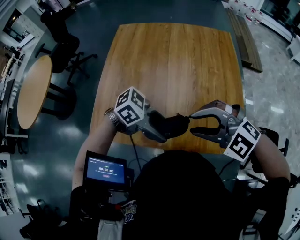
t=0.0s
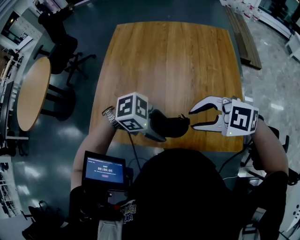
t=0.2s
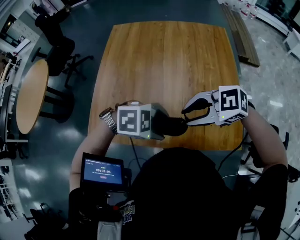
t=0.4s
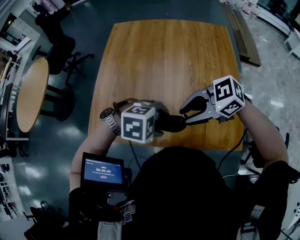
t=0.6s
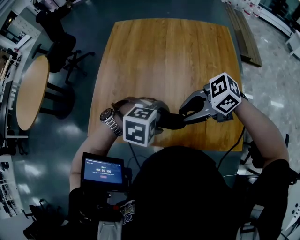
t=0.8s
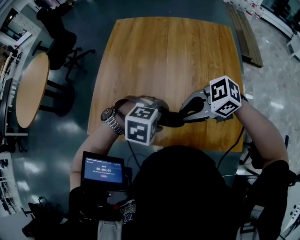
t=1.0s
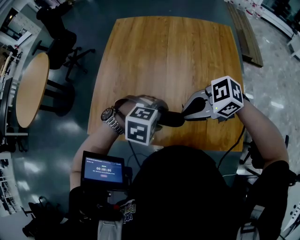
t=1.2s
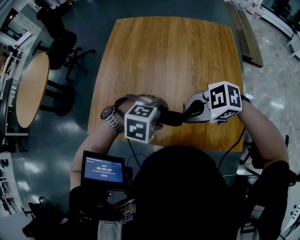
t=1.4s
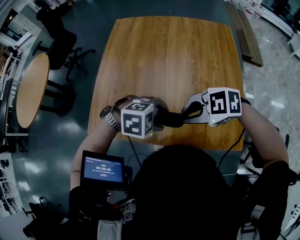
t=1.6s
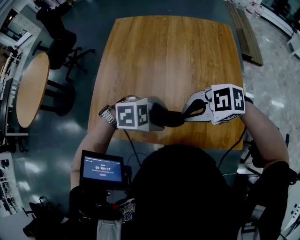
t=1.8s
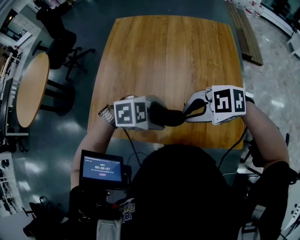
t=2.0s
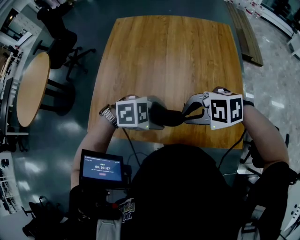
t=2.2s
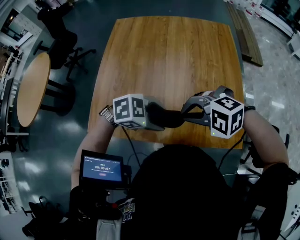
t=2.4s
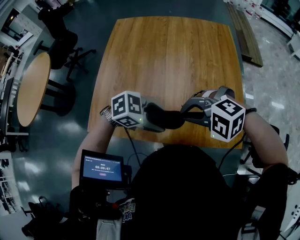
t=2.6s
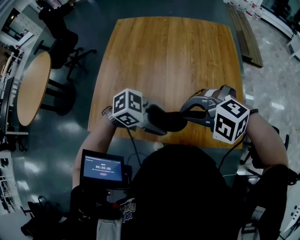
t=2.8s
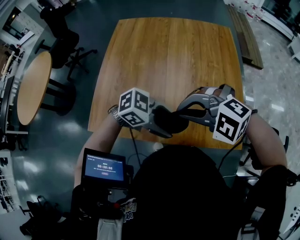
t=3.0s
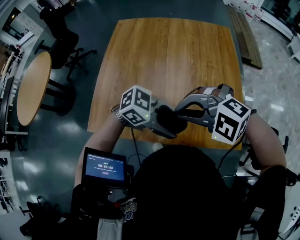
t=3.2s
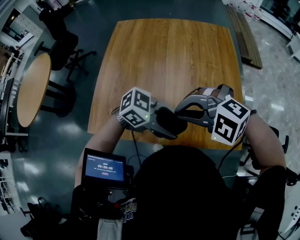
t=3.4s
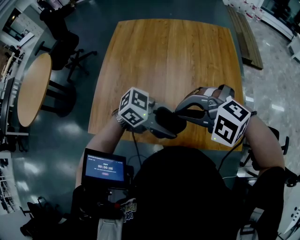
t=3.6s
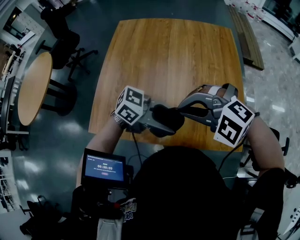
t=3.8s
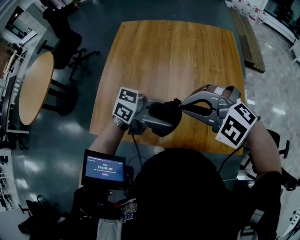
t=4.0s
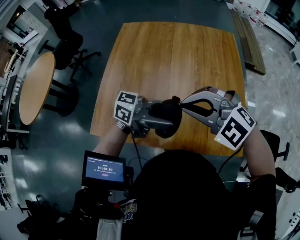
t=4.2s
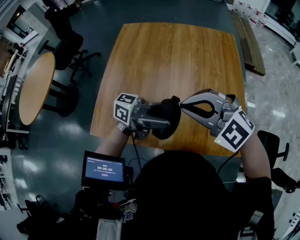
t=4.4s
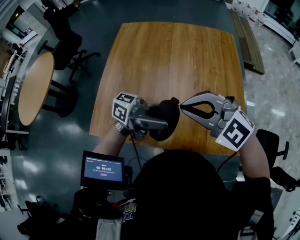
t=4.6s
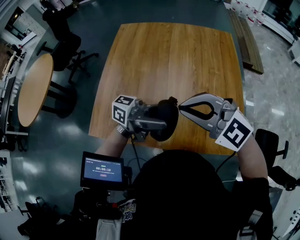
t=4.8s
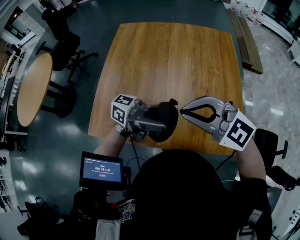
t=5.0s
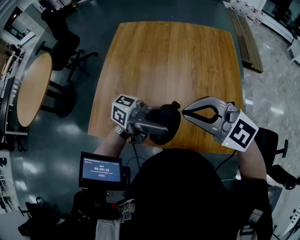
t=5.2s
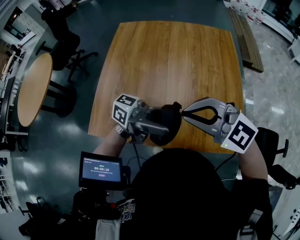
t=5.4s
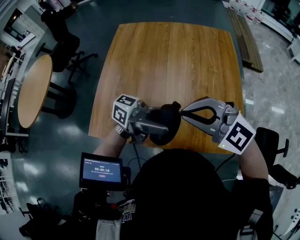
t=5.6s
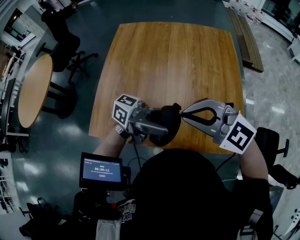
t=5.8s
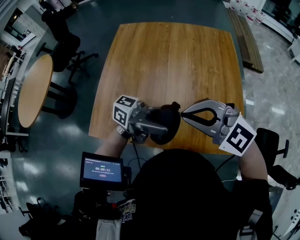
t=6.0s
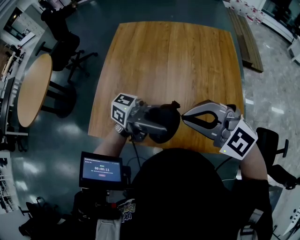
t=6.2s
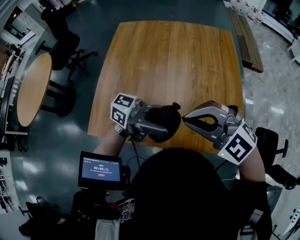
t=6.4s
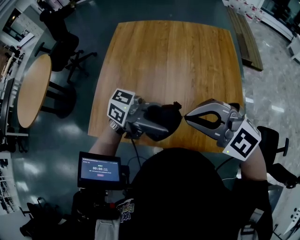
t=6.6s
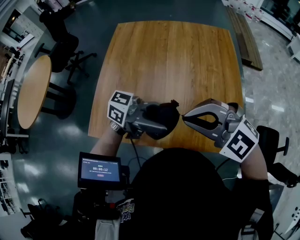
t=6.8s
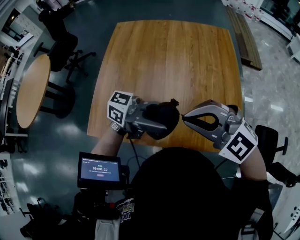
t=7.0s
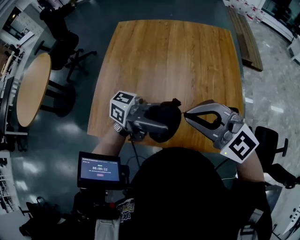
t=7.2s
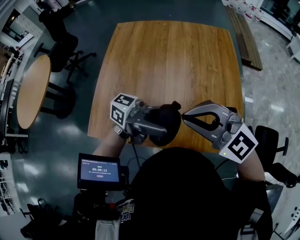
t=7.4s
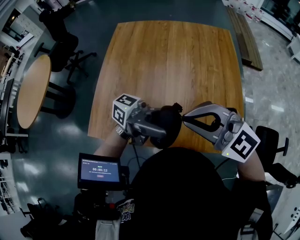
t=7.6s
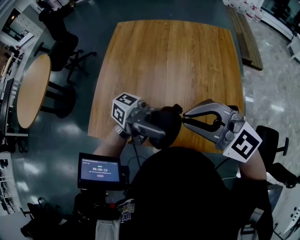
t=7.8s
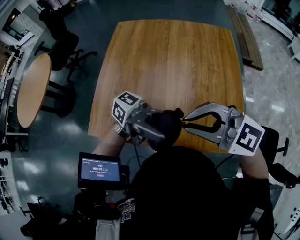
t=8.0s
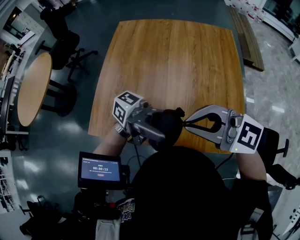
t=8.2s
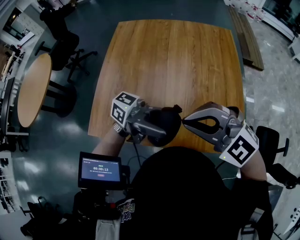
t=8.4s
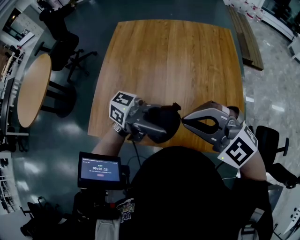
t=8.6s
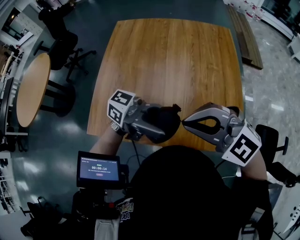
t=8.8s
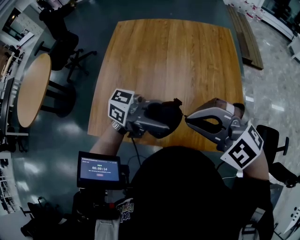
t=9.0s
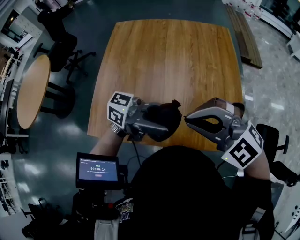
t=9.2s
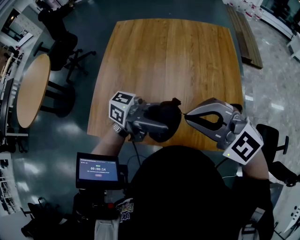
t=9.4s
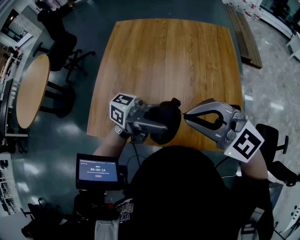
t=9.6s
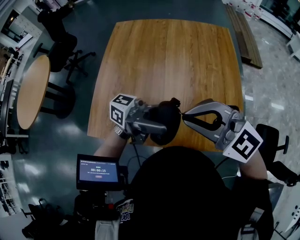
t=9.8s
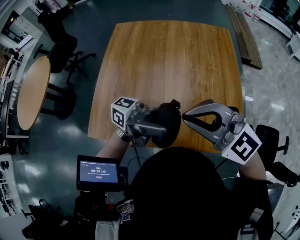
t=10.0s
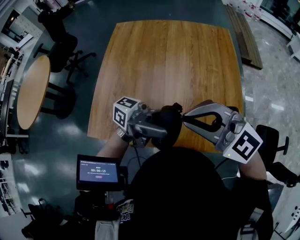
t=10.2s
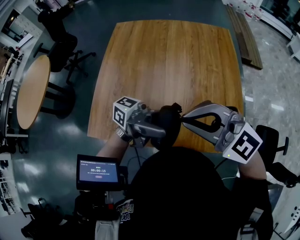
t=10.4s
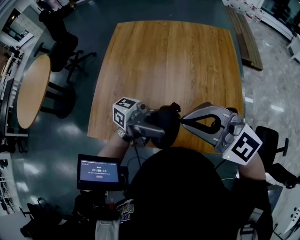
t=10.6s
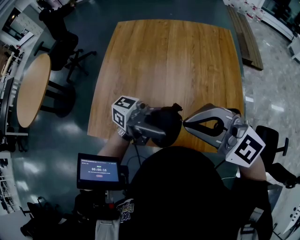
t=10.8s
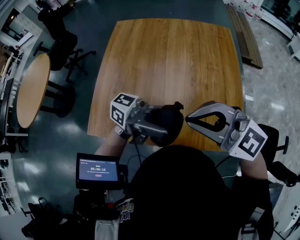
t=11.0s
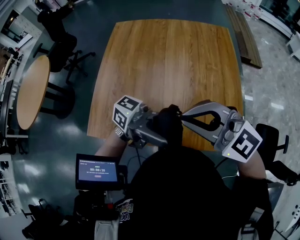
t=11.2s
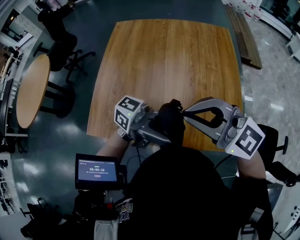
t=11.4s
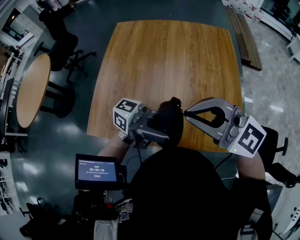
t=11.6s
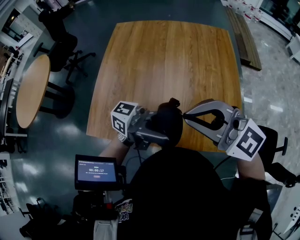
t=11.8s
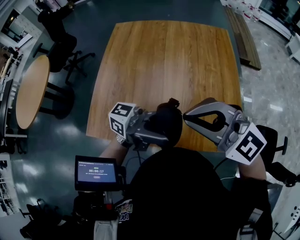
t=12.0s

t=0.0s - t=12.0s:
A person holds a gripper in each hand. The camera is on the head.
t=0.0s - t=1.6s: Both grippers travel together downward, about 5 cm. The left gripper tips its fingers downward by about 40 degrees; the right gripper swivels approximately 40 degrees, and closes.
t=1.6s - t=3.0s: The left gripper moves approximately 5 cm, and tilts its fingers roughly 40 degrees upward. The right gripper goes roughly 5 cm upward, and rotates approximately 40 degrees.
t=3.0s - t=4.4s: The right gripper shifts by roughly 5 cm, and changes its angle by roughly 20 degrees; the left gripper goes roughly 10 cm upward, and tilts its fingers some 50 degrees upward.
t=4.4s - t=7.6s: The grippers stay close to where they were, moving slightly.
t=7.6s - t=9.0s: The right gripper swivels approximately 20 degrees.
t=9.0s - t=10.4s: The right gripper rotates some 20 degrees. Meanwhile the left gripper rotates approximately 20 degrees.
t=10.4s - t=12.0s: The grippers move only a little.

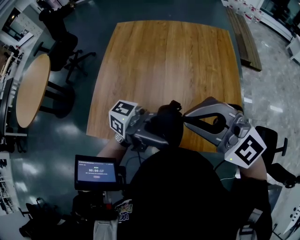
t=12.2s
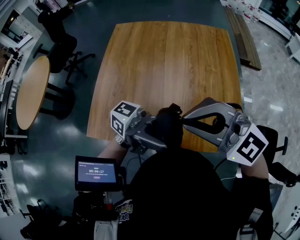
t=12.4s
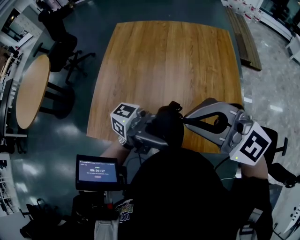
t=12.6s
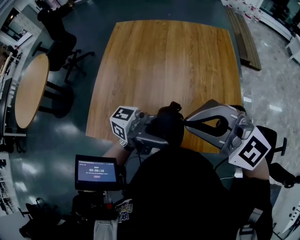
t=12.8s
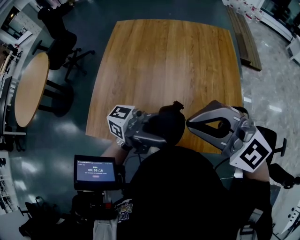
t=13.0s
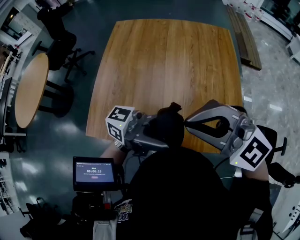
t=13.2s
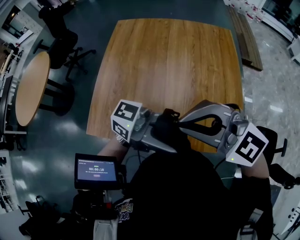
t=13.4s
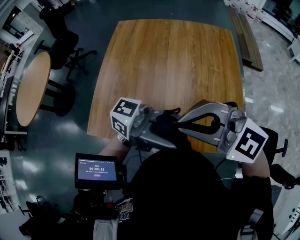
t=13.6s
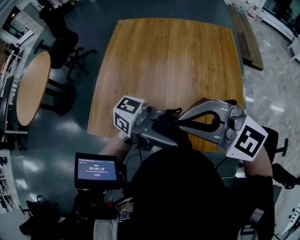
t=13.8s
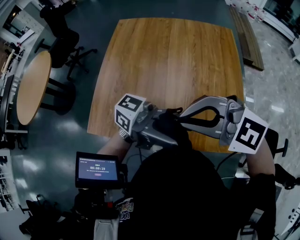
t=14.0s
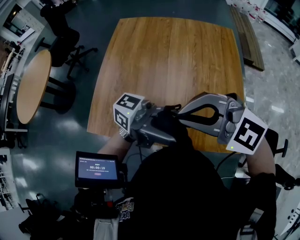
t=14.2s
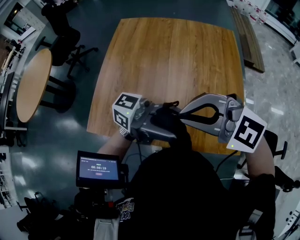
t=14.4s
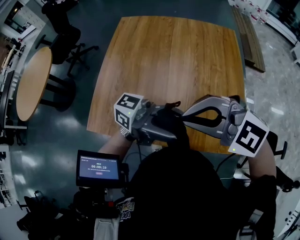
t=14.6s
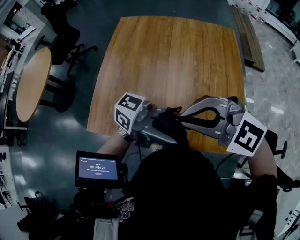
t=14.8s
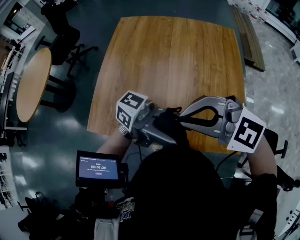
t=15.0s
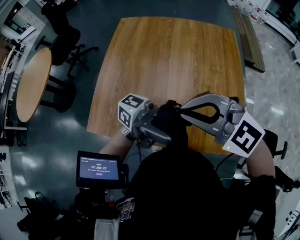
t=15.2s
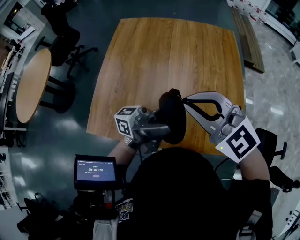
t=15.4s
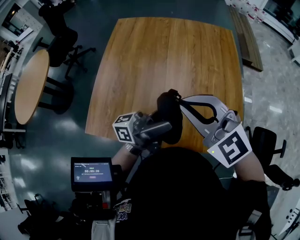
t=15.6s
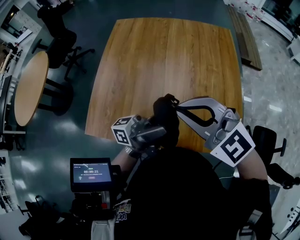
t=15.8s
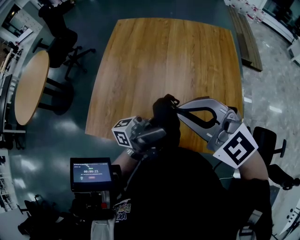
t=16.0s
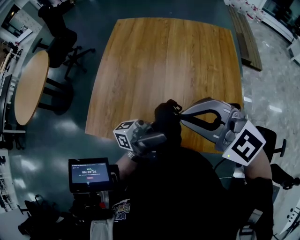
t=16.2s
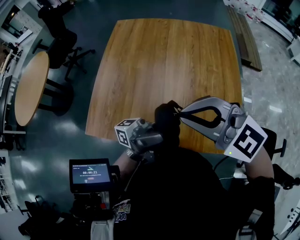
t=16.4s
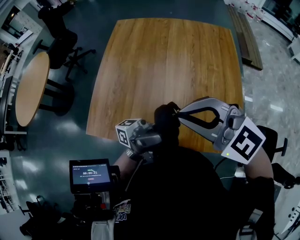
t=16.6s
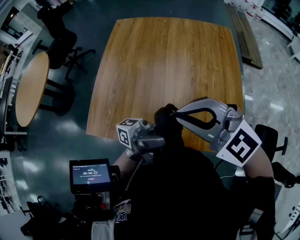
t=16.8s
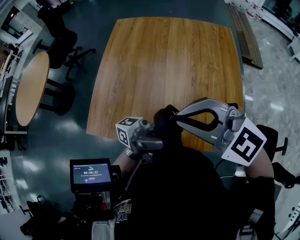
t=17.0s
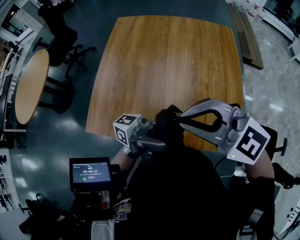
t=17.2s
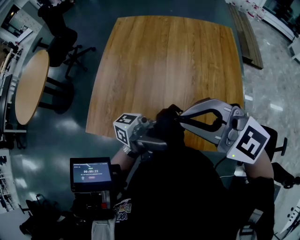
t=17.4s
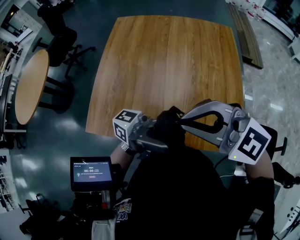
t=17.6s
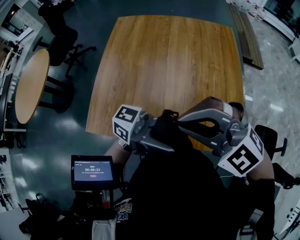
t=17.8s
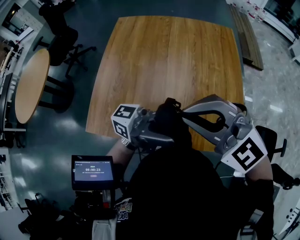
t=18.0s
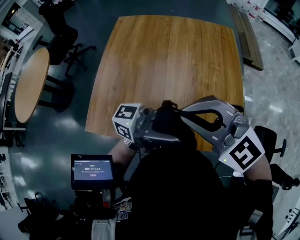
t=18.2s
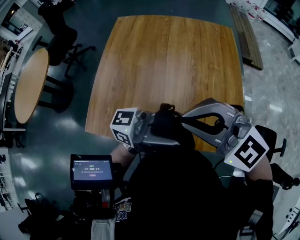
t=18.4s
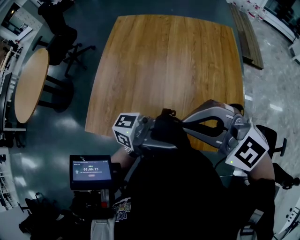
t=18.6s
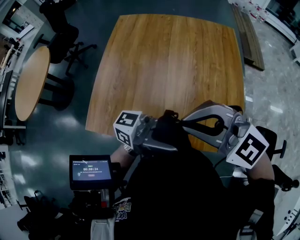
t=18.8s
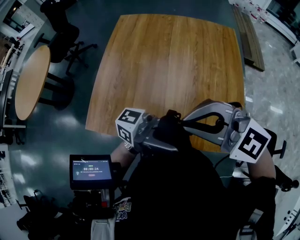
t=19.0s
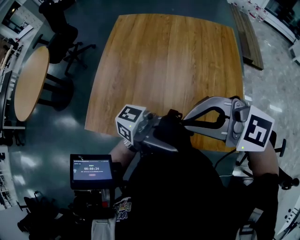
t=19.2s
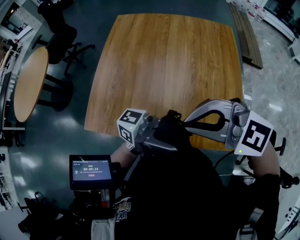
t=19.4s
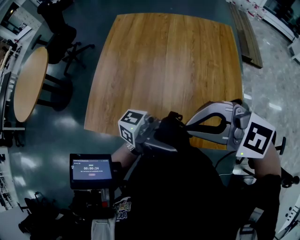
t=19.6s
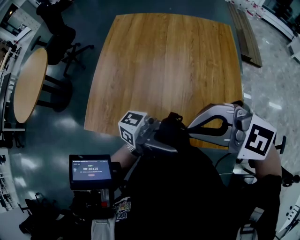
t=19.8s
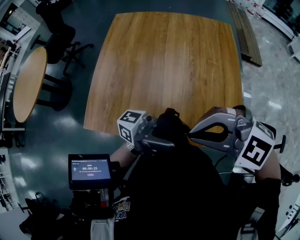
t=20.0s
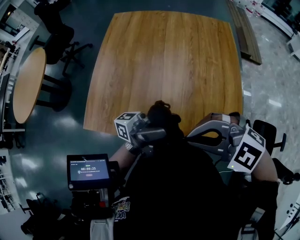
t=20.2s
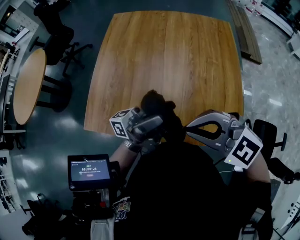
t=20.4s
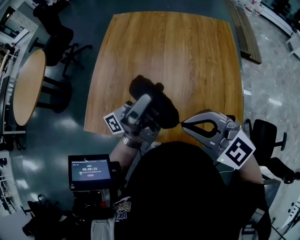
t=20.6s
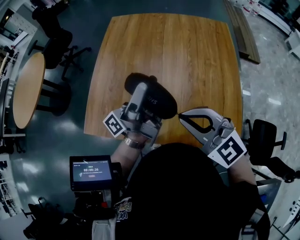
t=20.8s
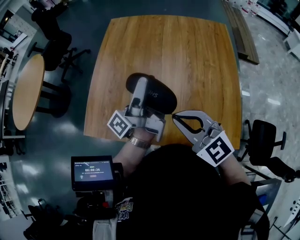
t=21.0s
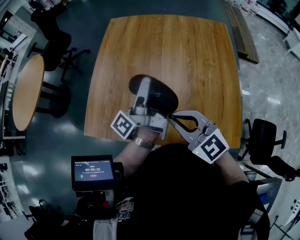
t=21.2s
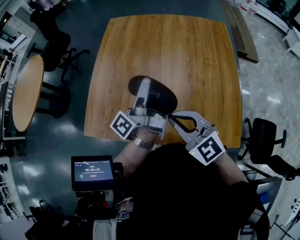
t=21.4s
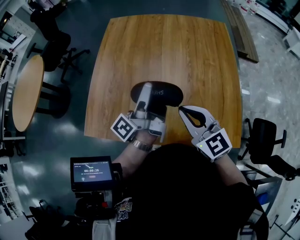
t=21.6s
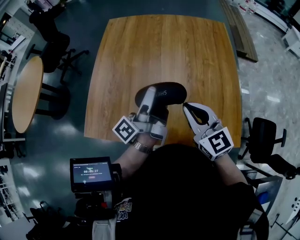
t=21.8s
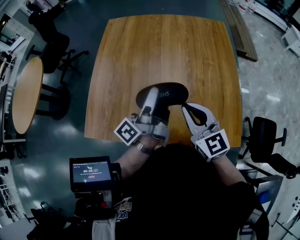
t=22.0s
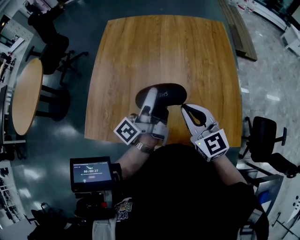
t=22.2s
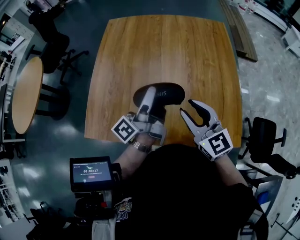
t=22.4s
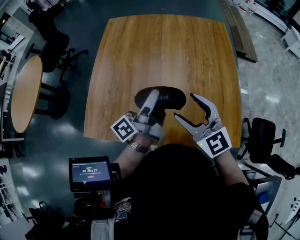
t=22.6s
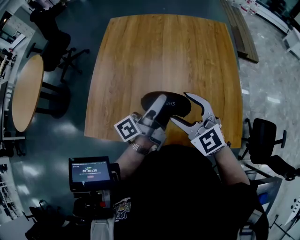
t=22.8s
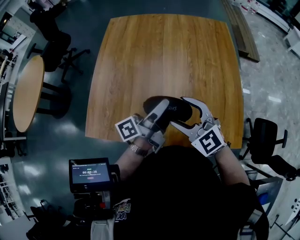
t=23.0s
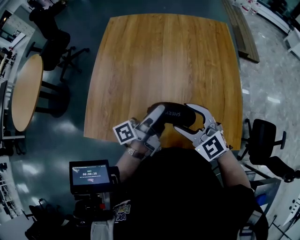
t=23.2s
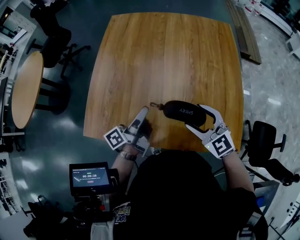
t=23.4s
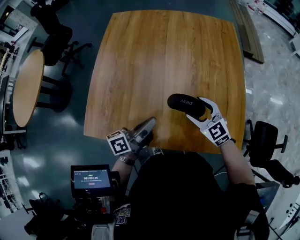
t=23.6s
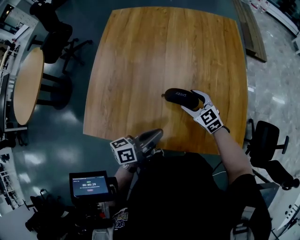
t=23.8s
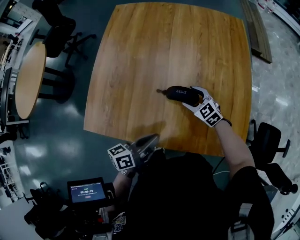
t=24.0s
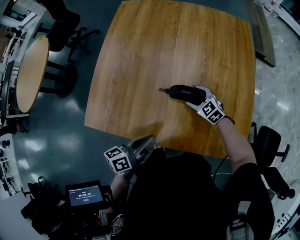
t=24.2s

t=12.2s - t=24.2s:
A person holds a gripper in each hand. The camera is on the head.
t=12.2s - t=13.8s: There are only small adjustments of the grippers.
t=13.8s - t=15.2s: There are only small adjustments of the grippers.
t=15.2s - t=16.6s: The left gripper rotates approximately 30 degrees.
t=16.6s - t=18.2s: The left gripper swivels roughly 30 degrees.
t=18.2s - t=19.8s: The right gripper shifts by about 5 cm, and changes its angle by some 20 degrees.
t=19.8s - t=21.2s: The left gripper ends up some 25 cm from where it was, and swivels about 70 degrees. Meanwhile the right gripper is displaced downward by about 10 cm, and changes its angle by roughly 40 degrees.
t=21.2s - t=22.6s: The right gripper shifts about 5 cm to the right, and opens up. Meanwhile the left gripper shifts by about 5 cm.
t=22.6s - t=24.2s: The left gripper is displaced backward, downward and to the left by some 20 cm, tips its fingers downward by about 30 degrees, and closes. Meanwhile the right gripper is displaced downward and forward by approximately 30 cm, and points its fingers roughly 30 degrees further downward.
